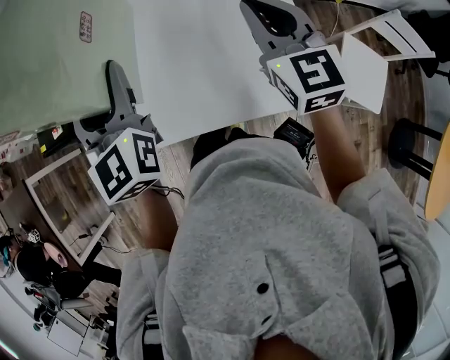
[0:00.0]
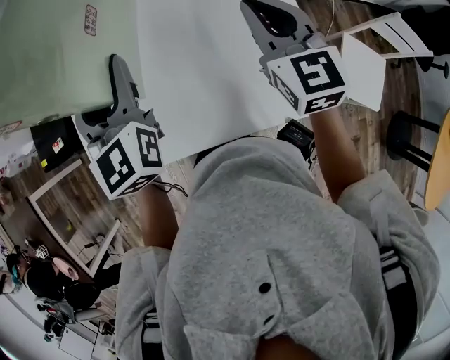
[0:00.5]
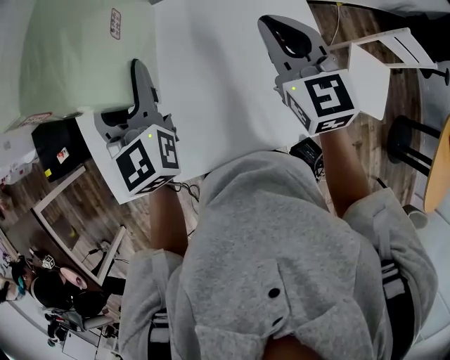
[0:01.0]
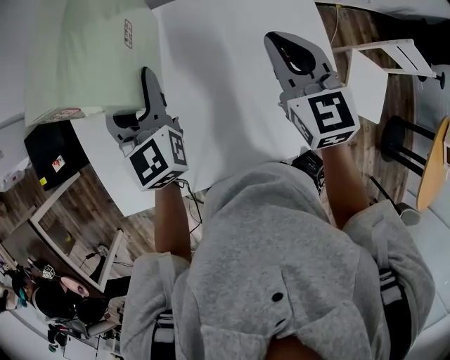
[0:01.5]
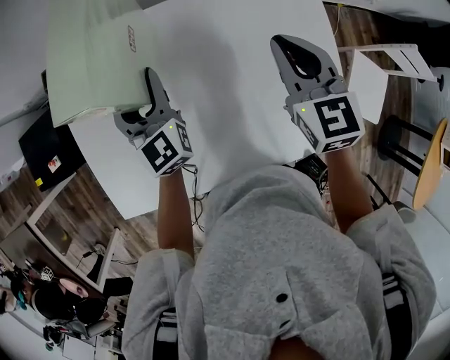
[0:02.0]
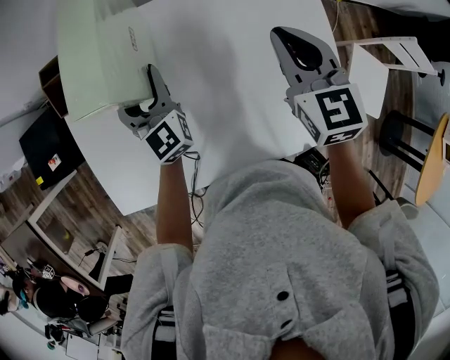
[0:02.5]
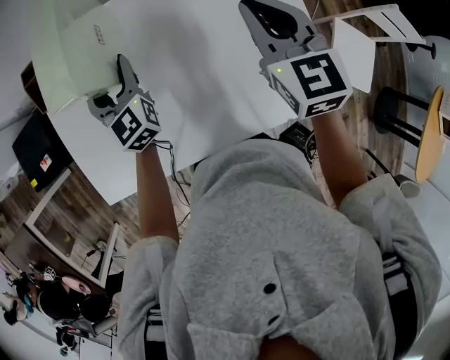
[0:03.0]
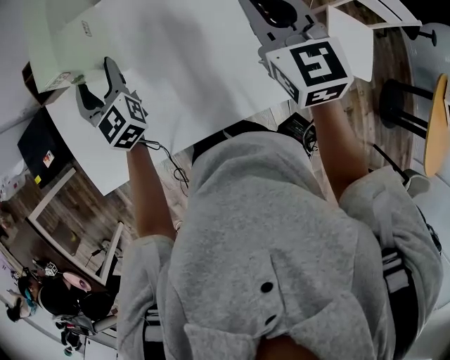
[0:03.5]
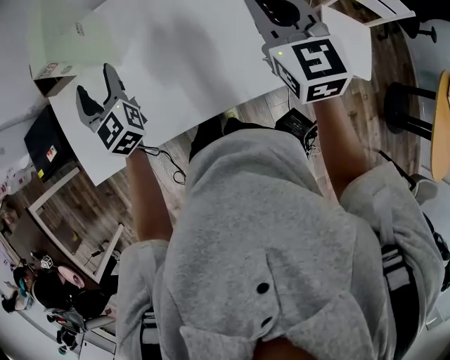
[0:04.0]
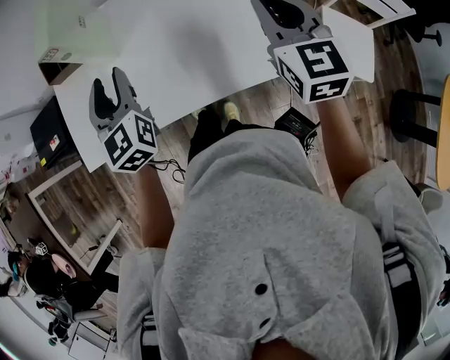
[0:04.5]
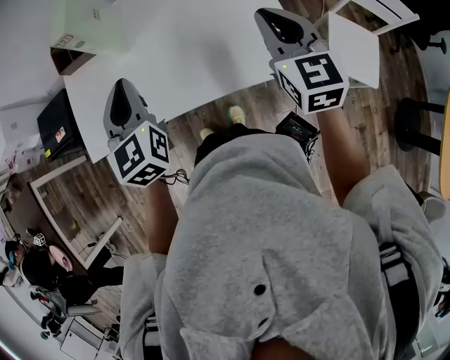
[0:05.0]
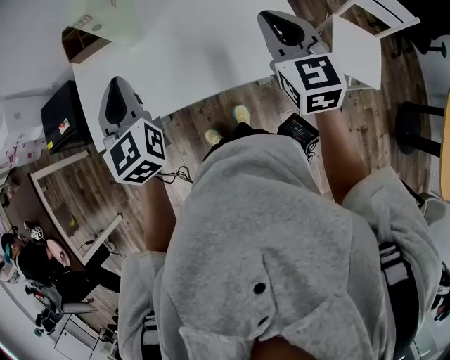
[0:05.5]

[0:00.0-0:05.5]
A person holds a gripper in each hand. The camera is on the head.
0:00.0 to 0:02.0: The left gripper travels forward and downward by about 25 cm. Meanwhile the right gripper shifts some 15 cm forward and downward.
0:02.0 to 0:03.5: The left gripper travels backward by approximately 5 cm. The right gripper shifts some 10 cm backward and upward.
0:03.5 to 0:05.5: The left gripper goes approximately 25 cm backward and upward, and closes up. The right gripper moves backward, approximately 15 cm.

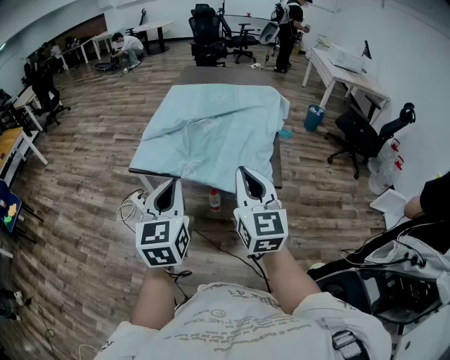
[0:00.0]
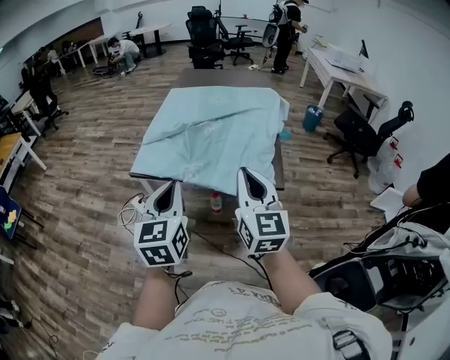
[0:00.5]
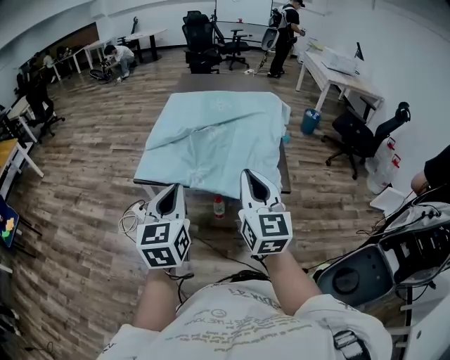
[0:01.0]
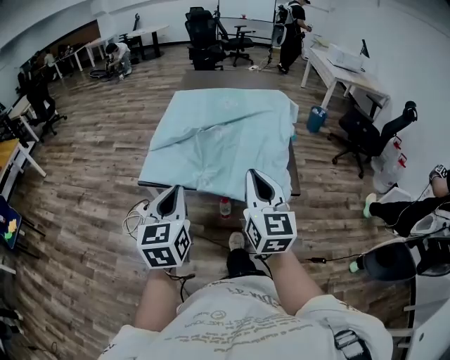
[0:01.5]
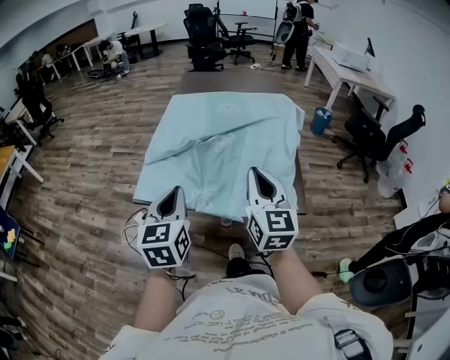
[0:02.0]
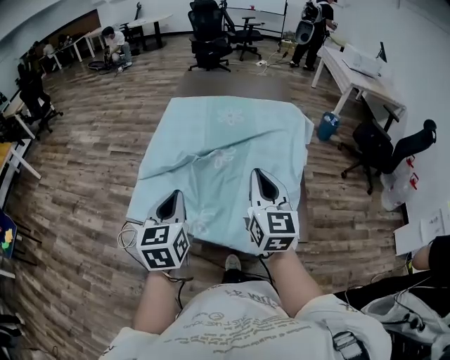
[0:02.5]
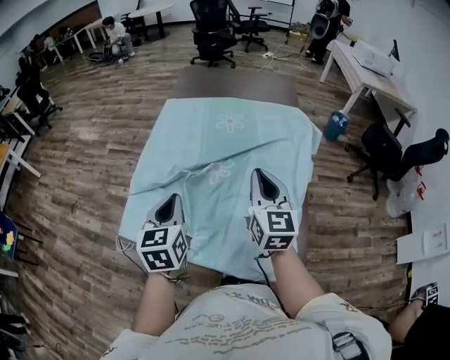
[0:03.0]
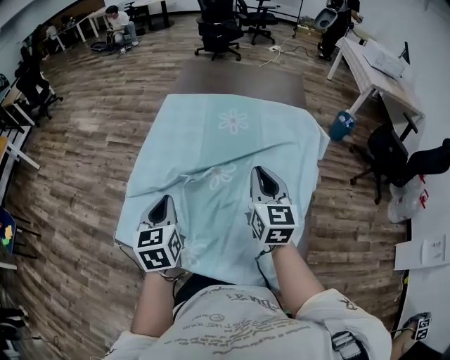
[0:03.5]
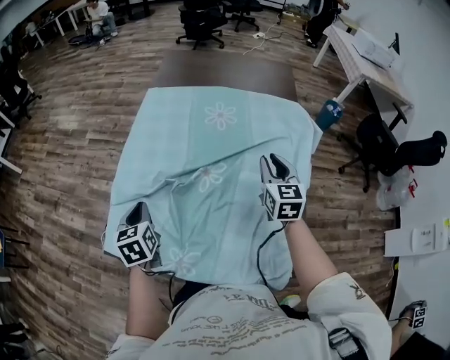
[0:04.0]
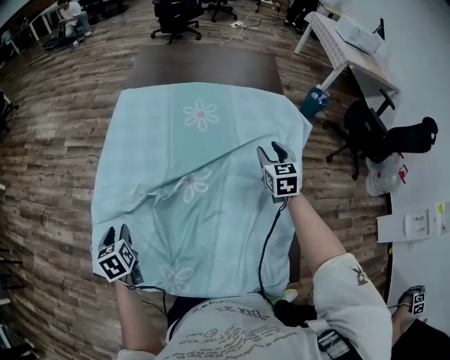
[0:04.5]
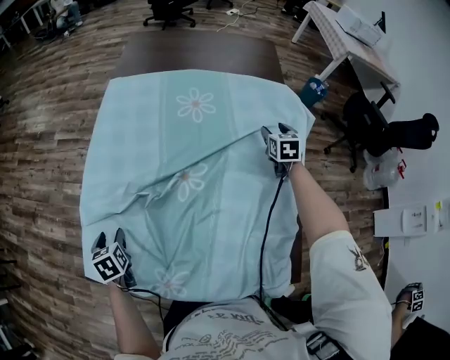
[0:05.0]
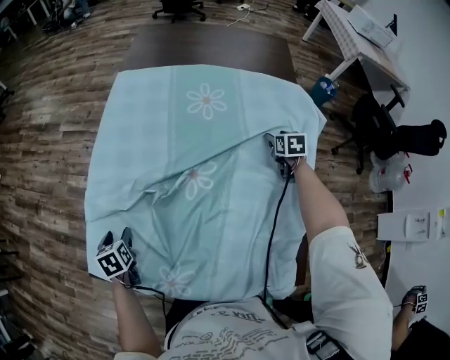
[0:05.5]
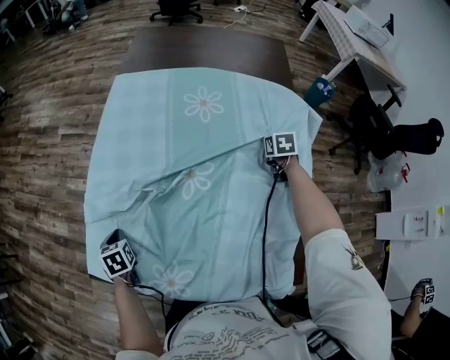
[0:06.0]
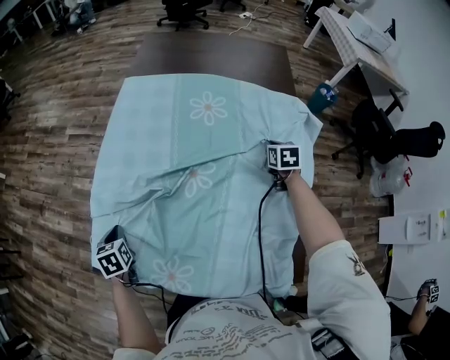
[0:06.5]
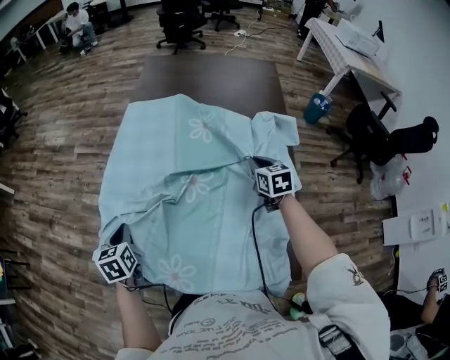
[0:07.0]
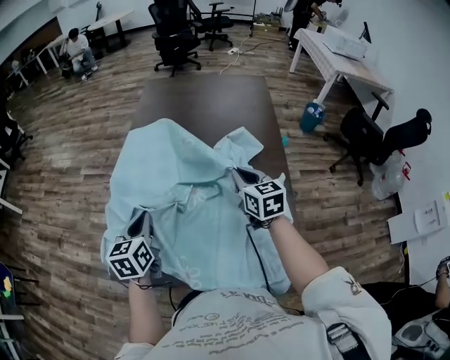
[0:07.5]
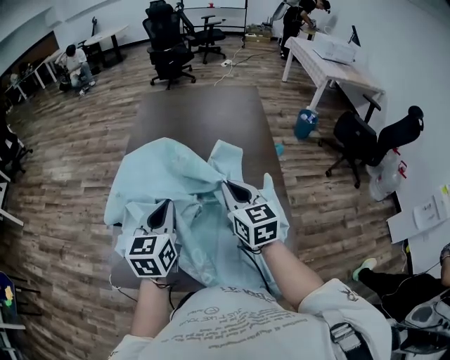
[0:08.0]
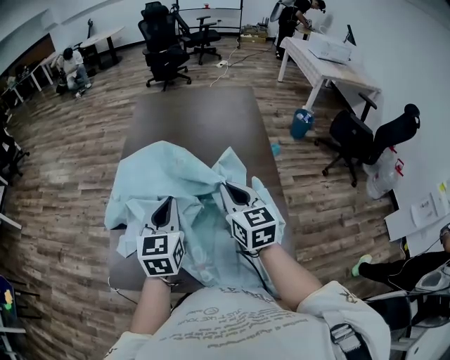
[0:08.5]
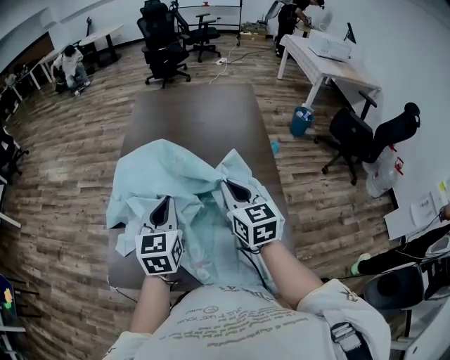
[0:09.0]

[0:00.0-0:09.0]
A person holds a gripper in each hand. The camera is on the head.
0:00.0 to 0:02.0: The right gripper travels forward by approximately 15 cm, while the left gripper goes roughly 20 cm forward and to the left.
0:02.0 to 0:04.5: The left gripper shifts roughly 40 cm forward and downward, tilts its fingers about 40 degrees downward, and opens up. Meanwhile the right gripper heads forward, downward and to the right, covering about 60 cm, angles its fingers downward, by roughly 30 degrees, and opens.
0:04.5 to 0:07.0: The left gripper closes. Meanwhile the right gripper moves to the left, some 5 cm, travels downward and back again, some 15 cm each way, and closes up.
0:07.0 to 0:09.0: The left gripper travels to the right and upward by roughly 30 cm, and changes its angle by approximately 30 degrees; the right gripper travels upward, backward and to the left by about 20 cm, and rotates about 20 degrees.

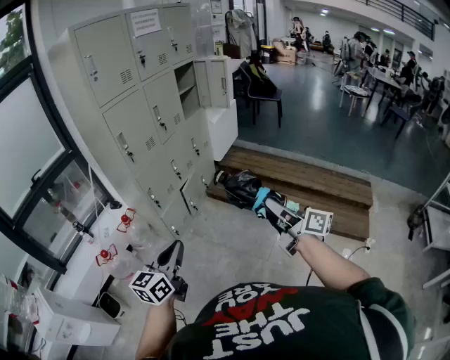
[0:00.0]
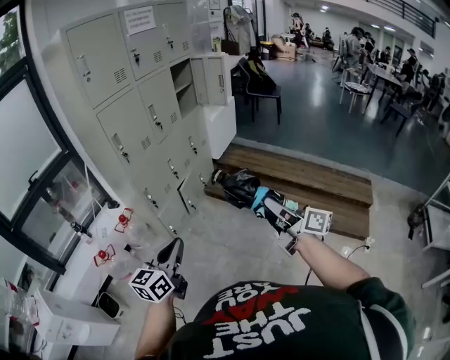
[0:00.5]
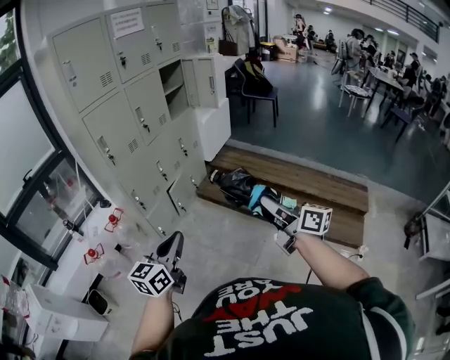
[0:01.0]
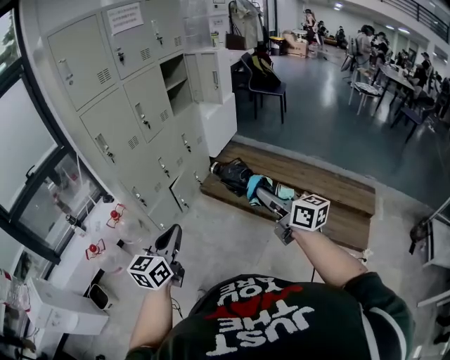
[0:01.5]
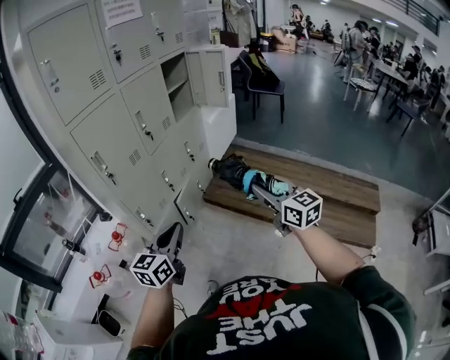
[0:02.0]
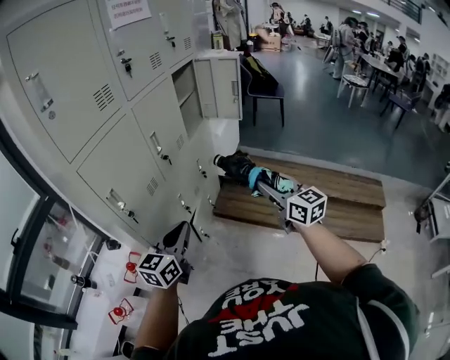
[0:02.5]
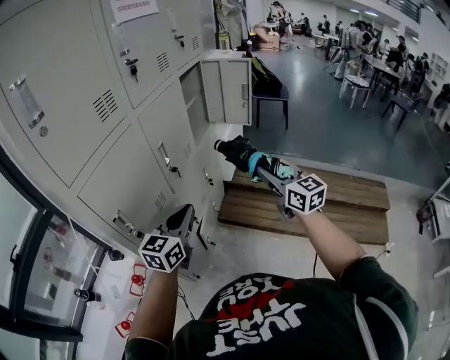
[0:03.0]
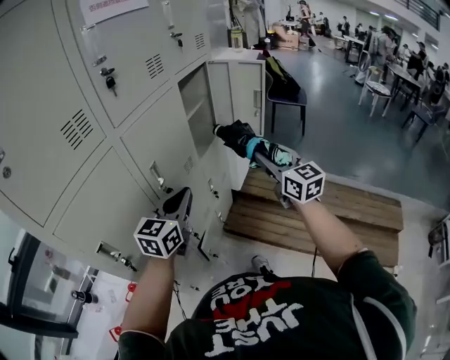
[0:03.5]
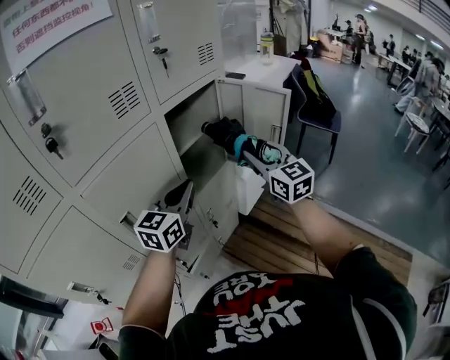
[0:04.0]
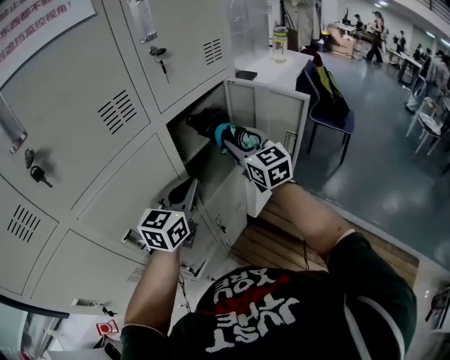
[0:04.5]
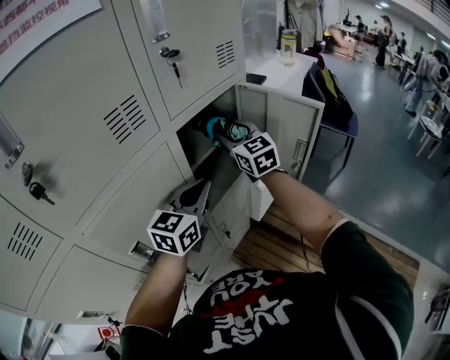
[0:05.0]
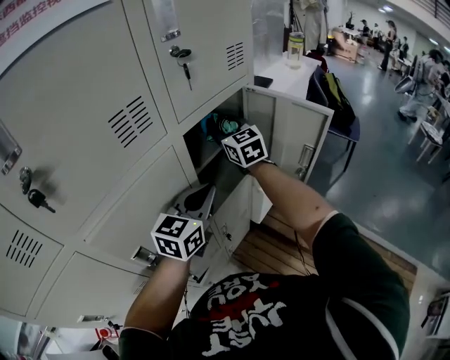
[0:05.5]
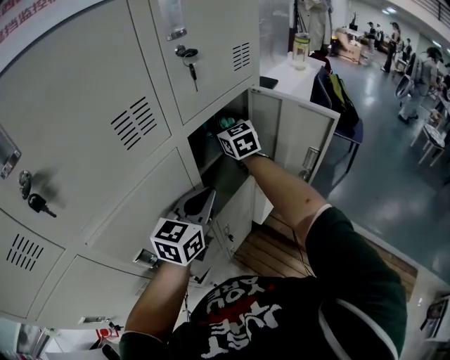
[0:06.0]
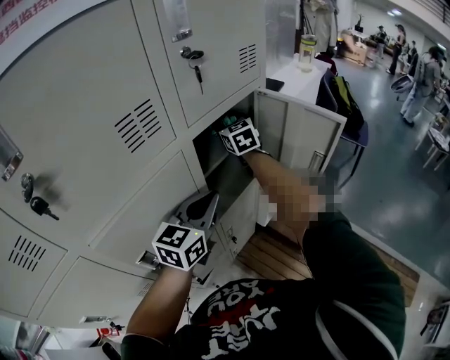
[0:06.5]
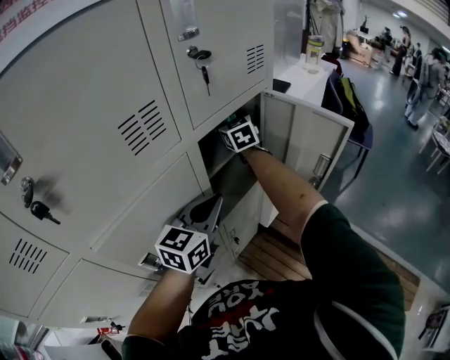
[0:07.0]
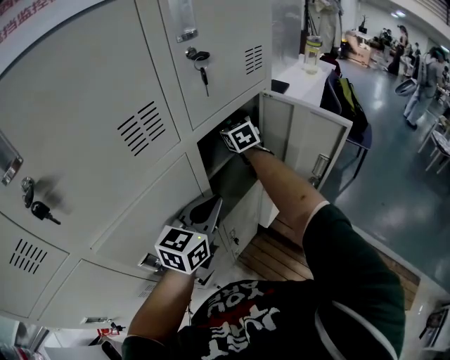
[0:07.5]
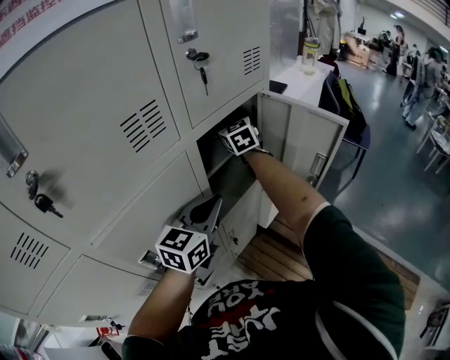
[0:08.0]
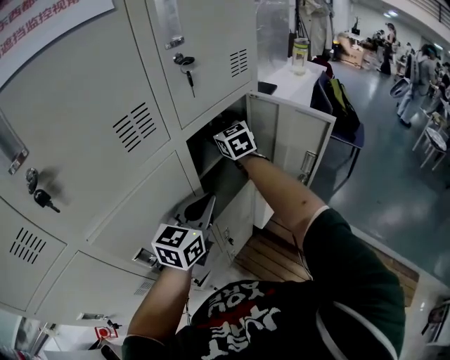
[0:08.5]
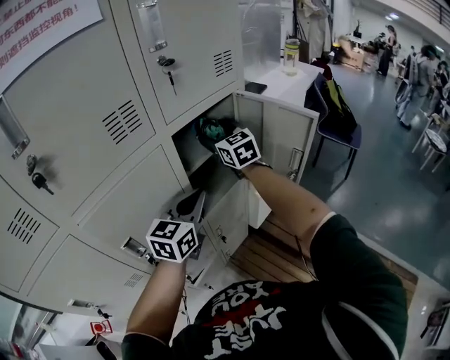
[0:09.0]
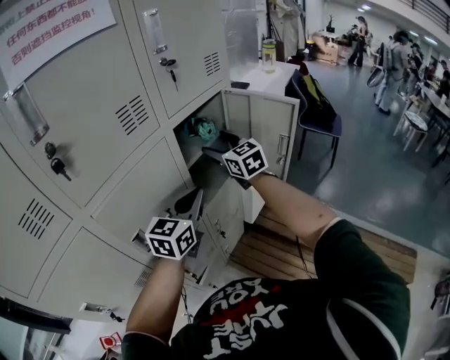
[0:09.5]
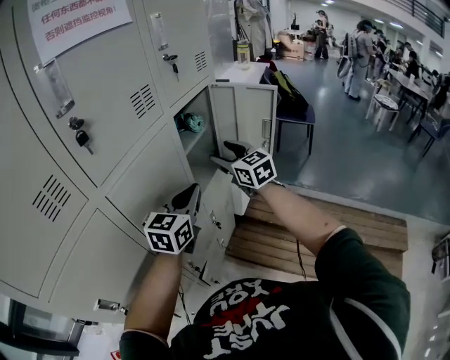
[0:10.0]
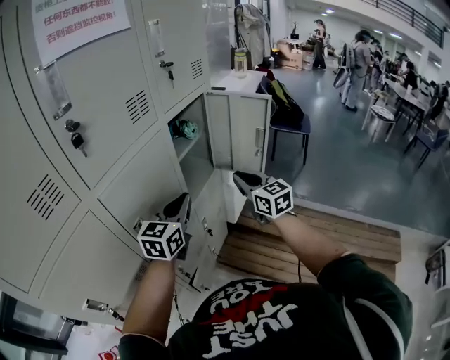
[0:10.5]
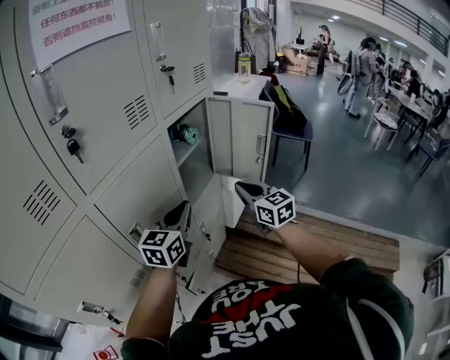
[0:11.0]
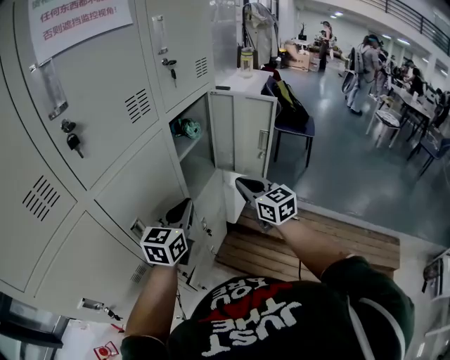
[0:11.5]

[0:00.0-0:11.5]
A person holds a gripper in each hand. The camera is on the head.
0:00.0 to 0:02.0: Both grippers travel together forward, approximately 25 cm. The right gripper turns by approximately 40 degrees.
0:02.0 to 0:04.0: The two grippers travel together, forward, approximately 70 cm.
0:04.0 to 0:06.0: The right gripper heads forward and to the left, covering roughly 30 cm. Meanwhile the left gripper is displaced forward by some 10 cm.
0:06.0 to 0:07.5: The right gripper shifts by some 5 cm.
0:07.5 to 0:09.5: The left gripper moves backward, approximately 5 cm. The right gripper heads backward, covering approximately 20 cm.
0:09.5 to 0:11.5: The right gripper goes approximately 20 cm backward and to the right, and closes. Meanwhile the left gripper heads backward, covering roughly 5 cm.
